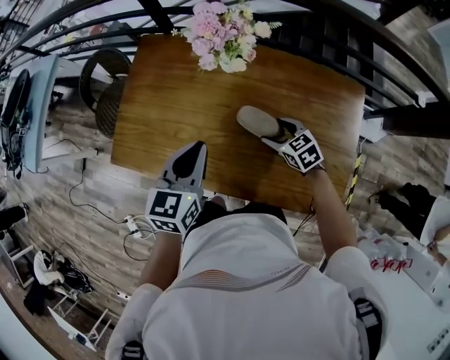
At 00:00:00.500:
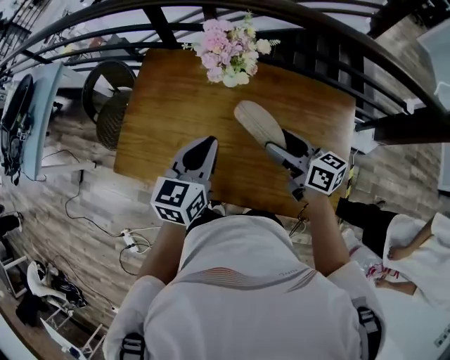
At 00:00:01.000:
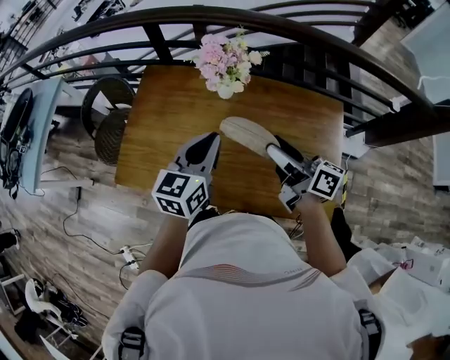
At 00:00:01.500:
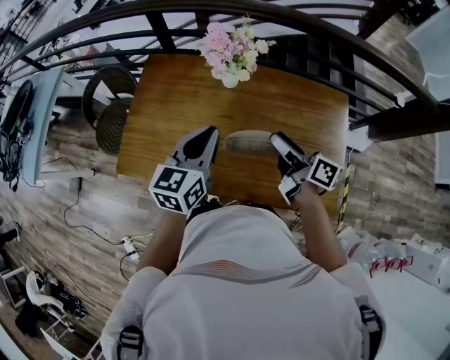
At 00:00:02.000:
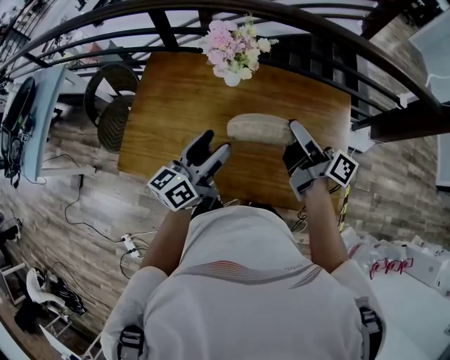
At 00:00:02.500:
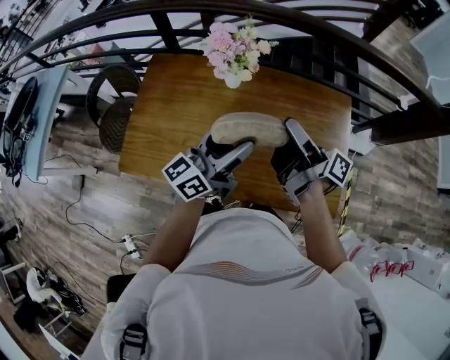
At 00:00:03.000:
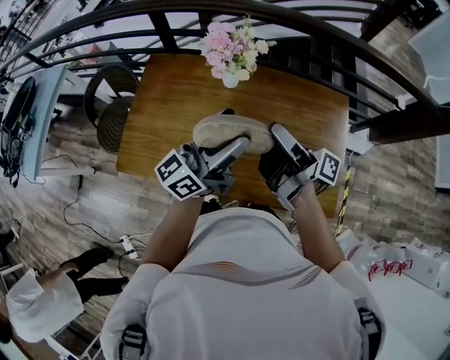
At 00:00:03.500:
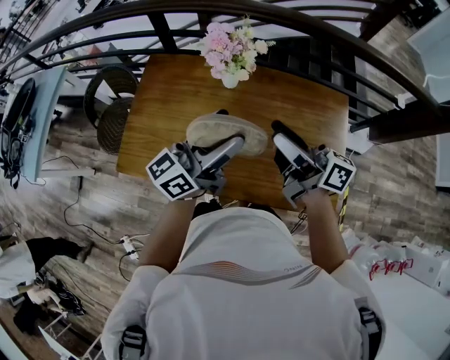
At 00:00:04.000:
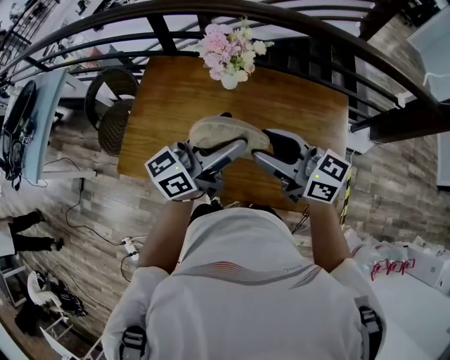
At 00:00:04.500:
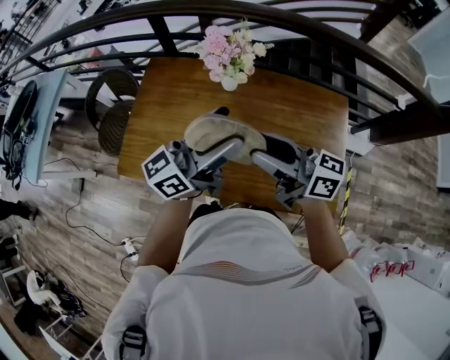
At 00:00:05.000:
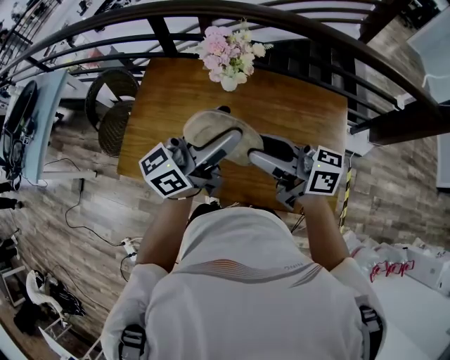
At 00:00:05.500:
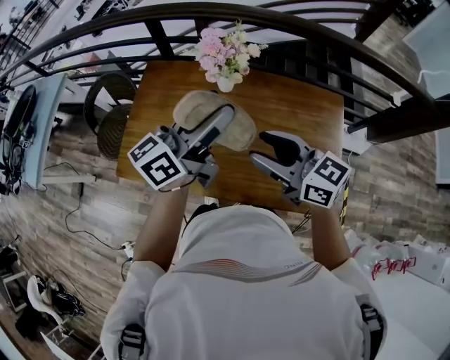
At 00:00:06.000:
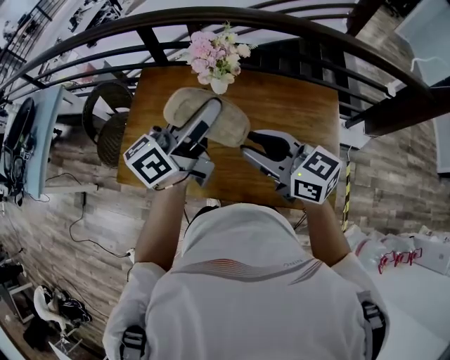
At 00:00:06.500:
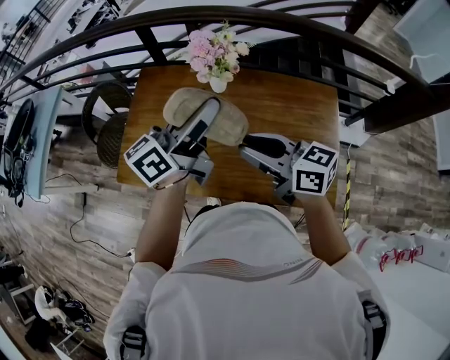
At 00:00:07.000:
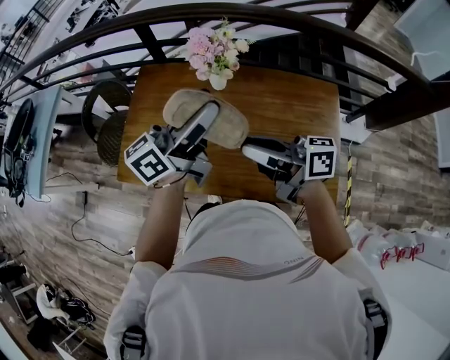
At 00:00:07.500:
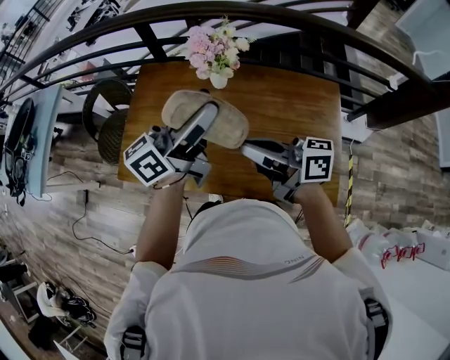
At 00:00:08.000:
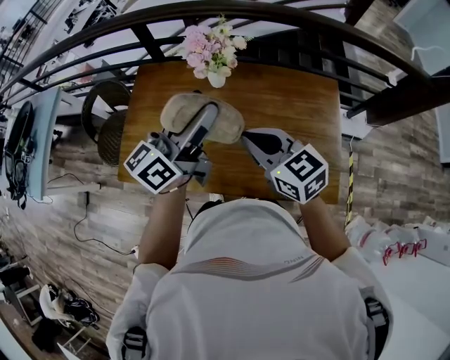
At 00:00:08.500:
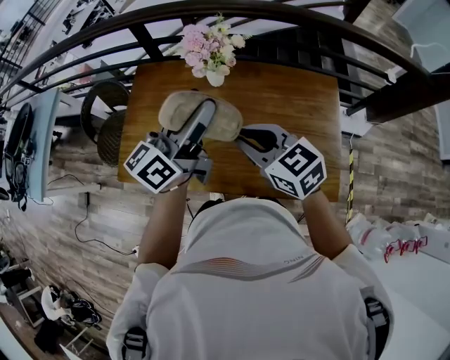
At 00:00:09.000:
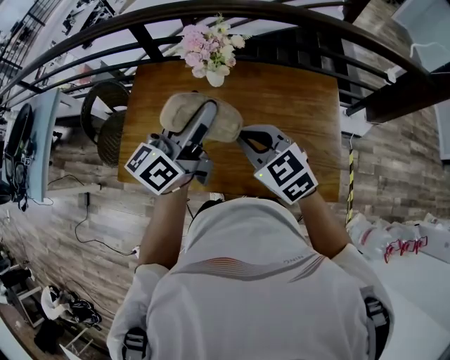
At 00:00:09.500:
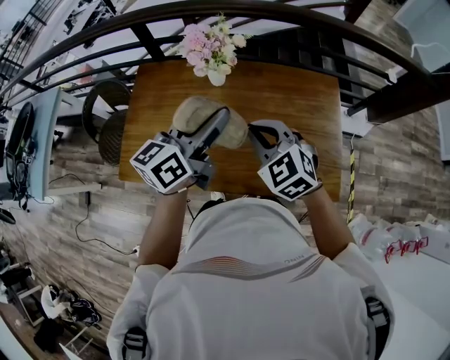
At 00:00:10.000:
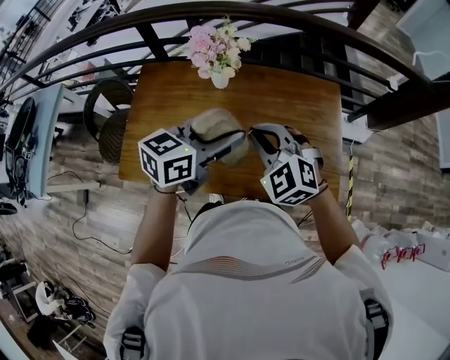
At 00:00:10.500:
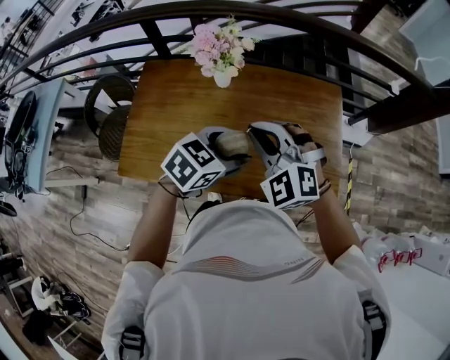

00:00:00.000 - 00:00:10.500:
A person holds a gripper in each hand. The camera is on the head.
00:00:00.000 - 00:00:02.000: The left gripper swivels some 40 degrees, and opens its fingers, while the right gripper goes up and down, approximately 25 cm each way, reversing 2 times, and points its fingers about 50 degrees further upward.
00:00:02.000 - 00:00:04.000: The right gripper goes roughly 10 cm to the left and backward, and rotates around the line of its fingers by approximately 40 degrees, counterclockwise from behind, while the left gripper heads upward, covering roughly 10 cm.
00:00:04.000 - 00:00:06.500: The left gripper travels upward by roughly 5 cm.
00:00:06.500 - 00:00:08.500: The right gripper rotates approximately 30 degrees.
00:00:08.500 - 00:00:10.500: The right gripper twists some 50 degrees counterclockwise, seen from behind. Meanwhile the left gripper shifts about 15 cm downward, and points its fingers about 50 degrees further downward.

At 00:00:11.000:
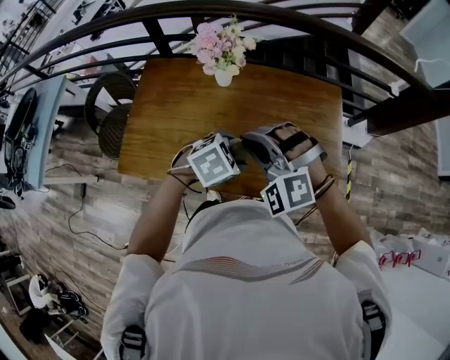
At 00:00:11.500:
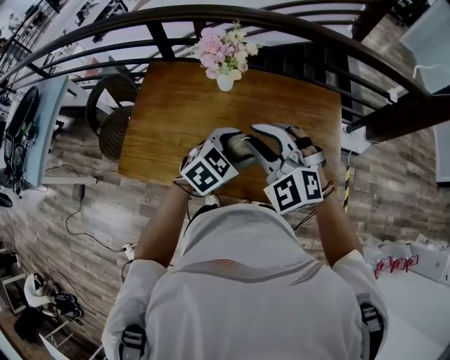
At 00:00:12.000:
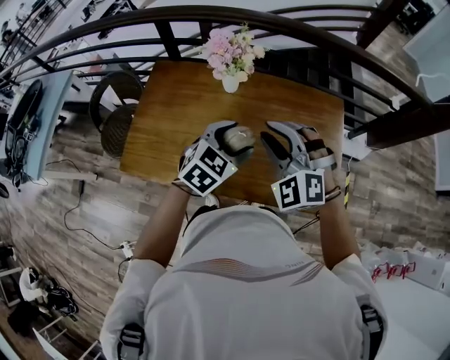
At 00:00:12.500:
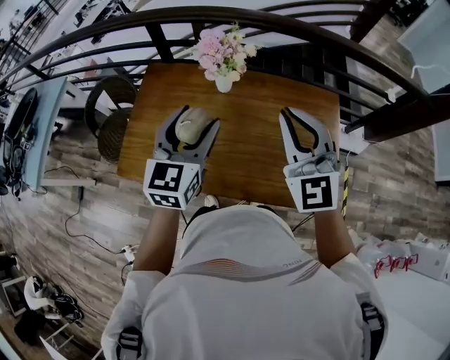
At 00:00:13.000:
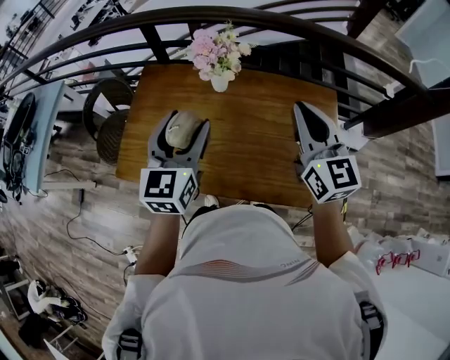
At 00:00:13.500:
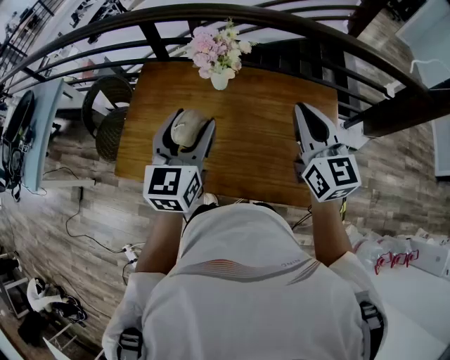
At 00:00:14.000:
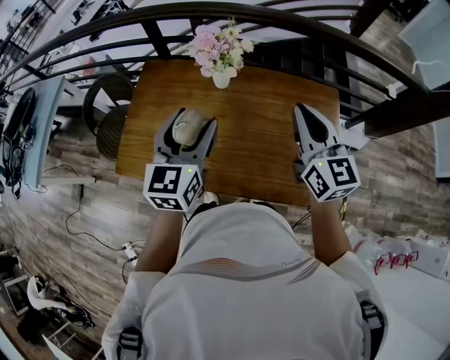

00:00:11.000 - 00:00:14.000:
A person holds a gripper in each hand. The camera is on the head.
00:00:11.000 - 00:00:12.500: The right gripper is displaced upward, to the right and forward by some 15 cm, and changes its angle by roughly 50 degrees. The left gripper is displaced upward and to the left by about 20 cm, and points its fingers approximately 50 degrees further upward.
00:00:12.500 - 00:00:14.000: The right gripper heads to the right, covering approximately 5 cm, and changes its angle by roughly 40 degrees.

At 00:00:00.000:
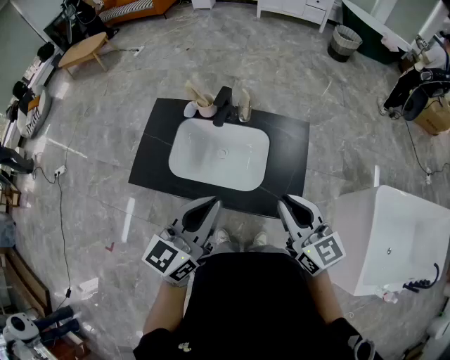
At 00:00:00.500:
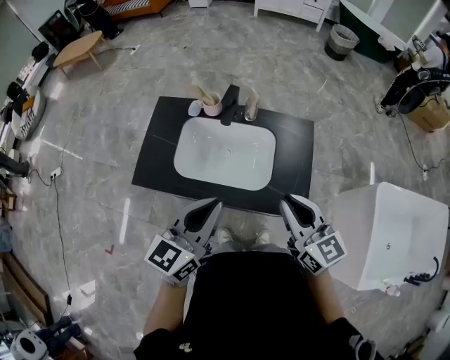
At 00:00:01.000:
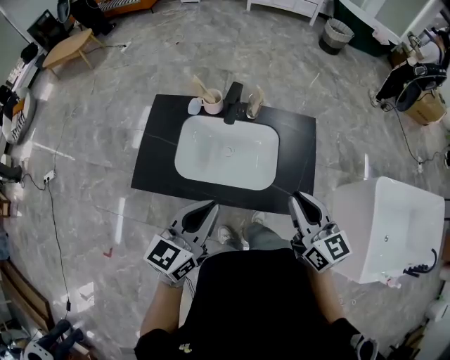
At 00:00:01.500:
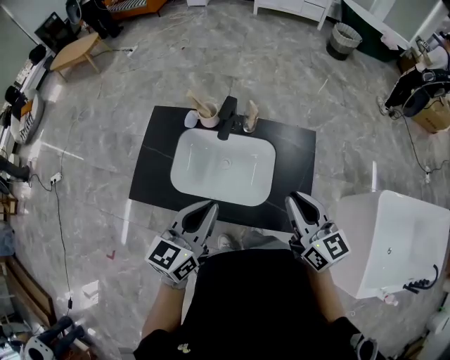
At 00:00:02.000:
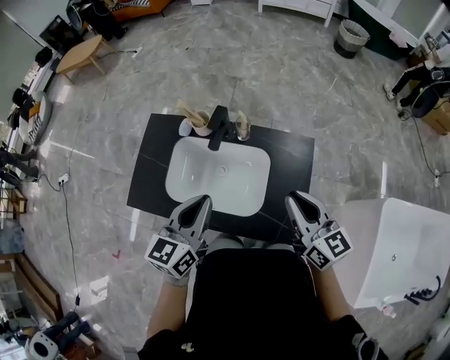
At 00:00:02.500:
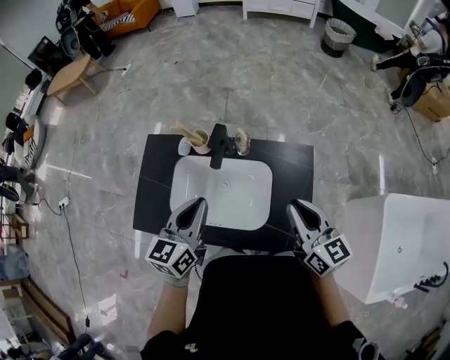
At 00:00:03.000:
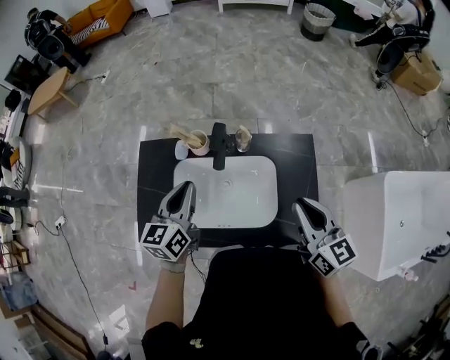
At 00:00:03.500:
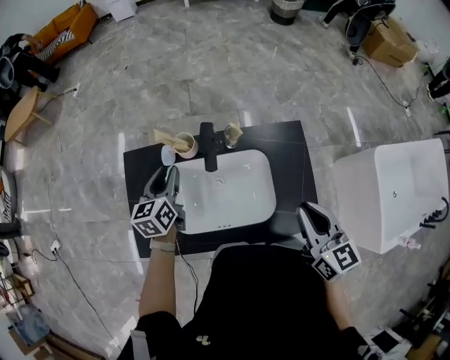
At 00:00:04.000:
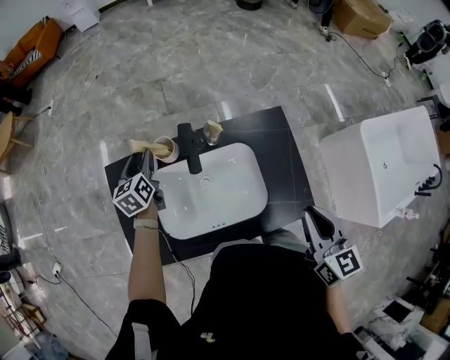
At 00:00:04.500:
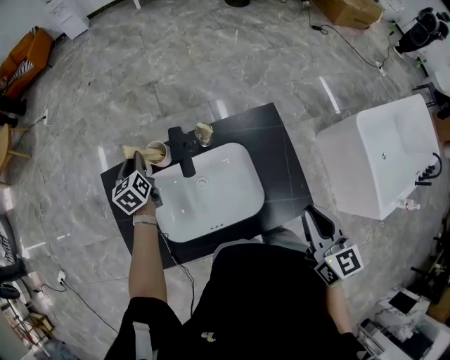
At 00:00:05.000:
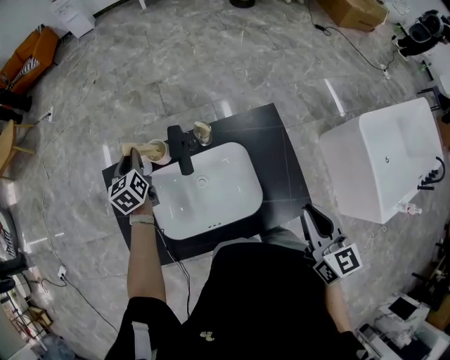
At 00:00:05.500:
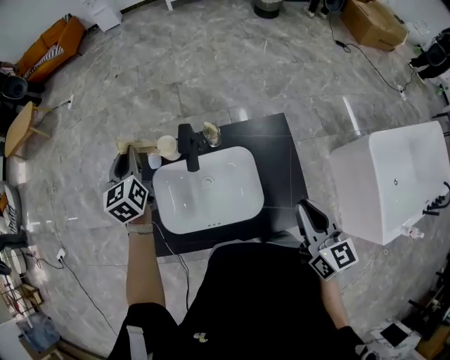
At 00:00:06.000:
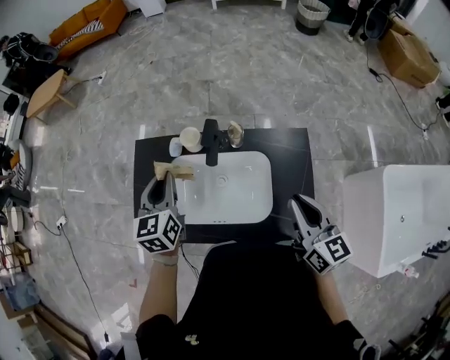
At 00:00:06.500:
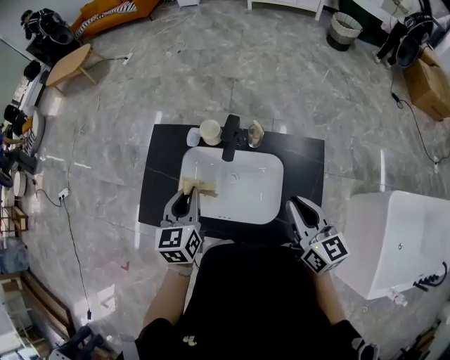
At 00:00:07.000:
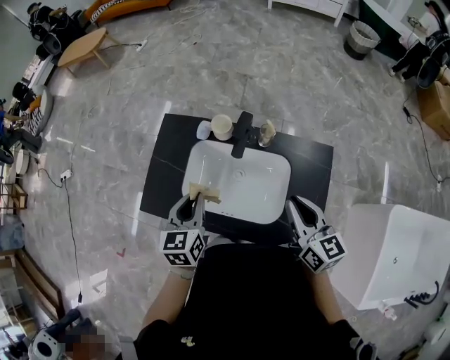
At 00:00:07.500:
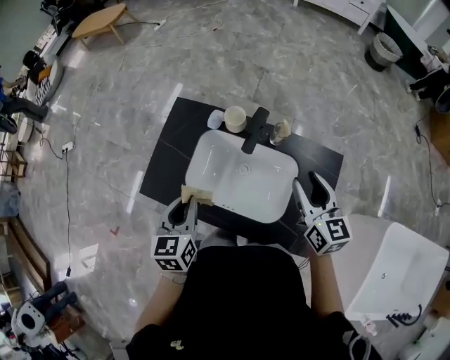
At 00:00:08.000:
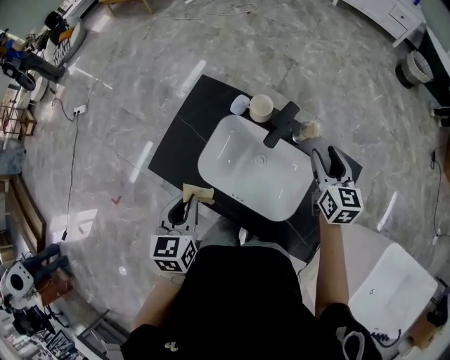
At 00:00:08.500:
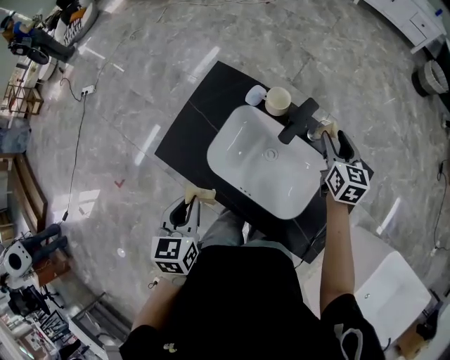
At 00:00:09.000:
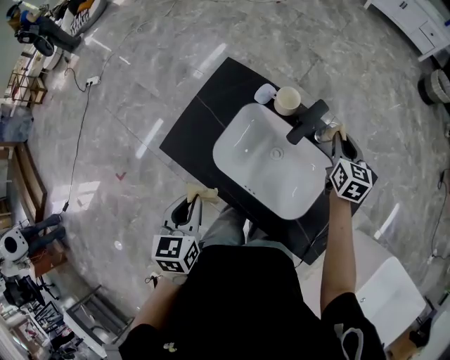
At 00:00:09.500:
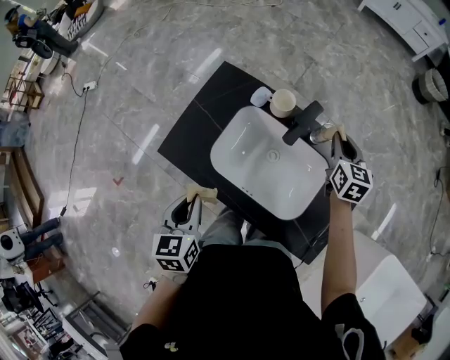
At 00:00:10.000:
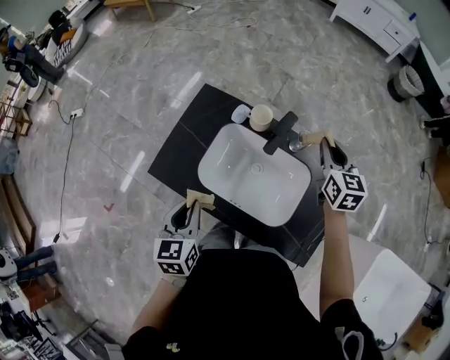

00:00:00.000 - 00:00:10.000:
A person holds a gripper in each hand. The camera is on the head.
00:00:00.000 - 00:00:02.000: The right gripper travels forward by roughly 15 cm; the left gripper shifts about 15 cm forward and downward.
00:00:02.000 - 00:00:04.000: The left gripper moves forward, to the left and downward, about 40 cm, and opens, while the right gripper is displaced backward by roughly 5 cm, and swivels approximately 40 degrees.
00:00:04.000 - 00:00:06.000: The right gripper travels forward by roughly 5 cm, and swivels about 20 degrees. The left gripper shifts approximately 20 cm backward and upward, and closes up.
00:00:06.000 - 00:00:08.000: The left gripper moves backward and to the left, about 20 cm, and rotates approximately 20 degrees. The right gripper goes approximately 20 cm forward, turns by approximately 20 degrees, and opens up.
00:00:08.000 - 00:00:10.000: The right gripper closes up.

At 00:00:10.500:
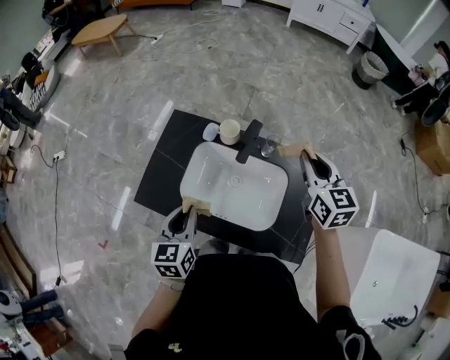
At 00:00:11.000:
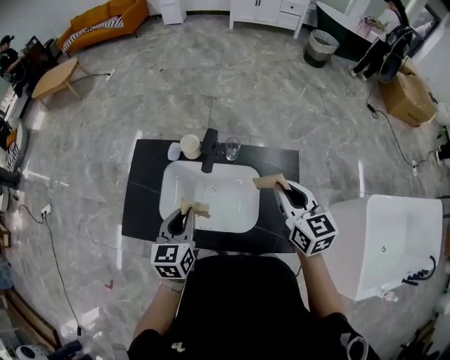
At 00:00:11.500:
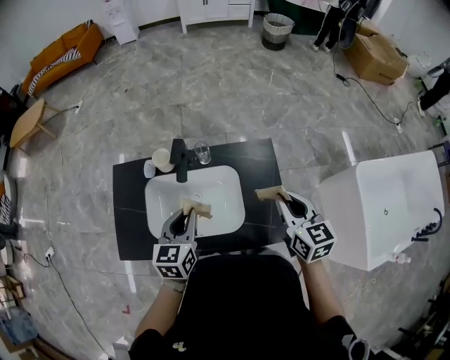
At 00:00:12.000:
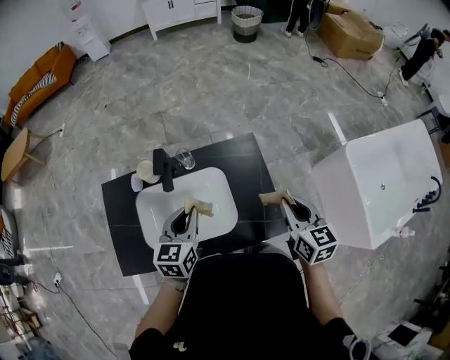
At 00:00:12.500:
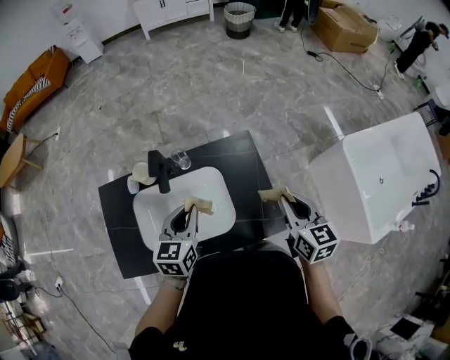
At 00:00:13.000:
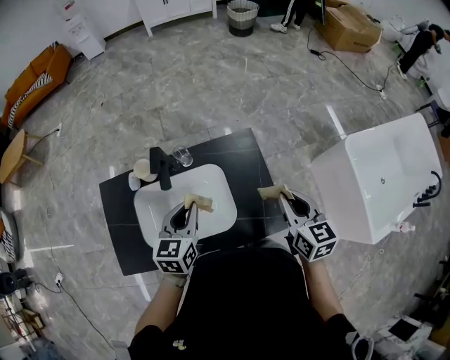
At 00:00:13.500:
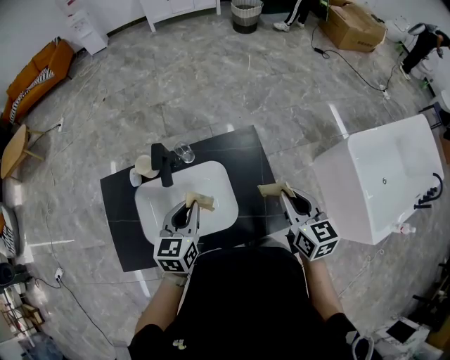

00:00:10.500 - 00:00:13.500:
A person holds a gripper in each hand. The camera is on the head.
00:00:10.500 - 00:00:12.000: The left gripper ends up approximately 20 cm from where it was, and rotates approximately 40 degrees, while the right gripper changes place by roughly 30 cm, and rotates about 30 degrees.
00:00:12.000 - 00:00:13.500: The grippers make only small movements.
